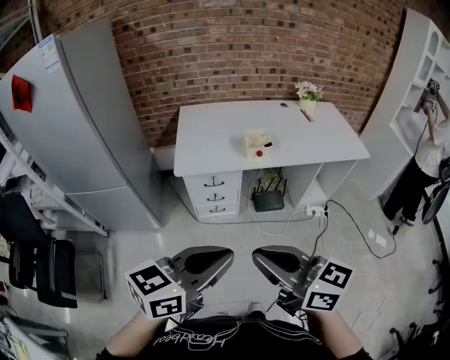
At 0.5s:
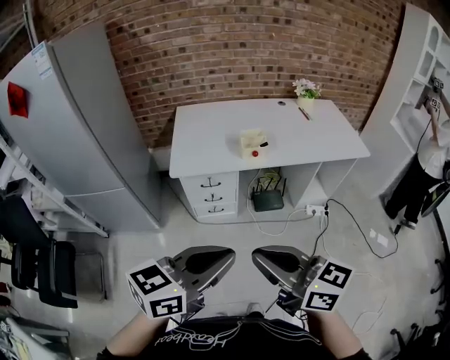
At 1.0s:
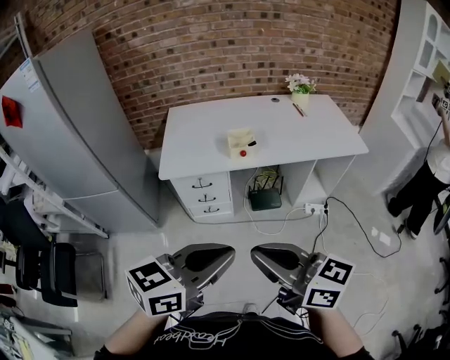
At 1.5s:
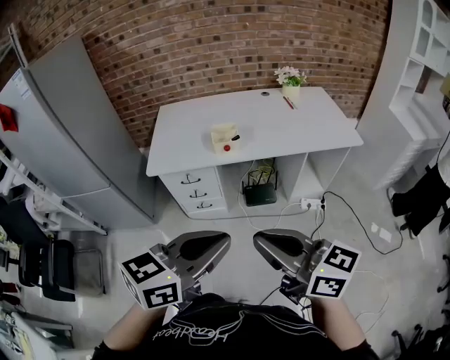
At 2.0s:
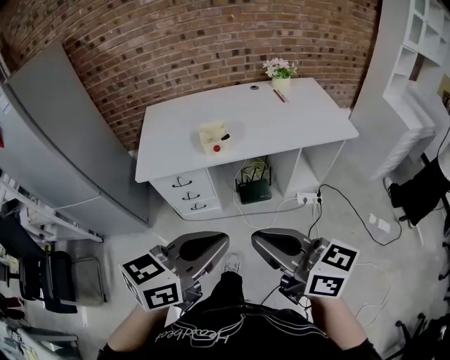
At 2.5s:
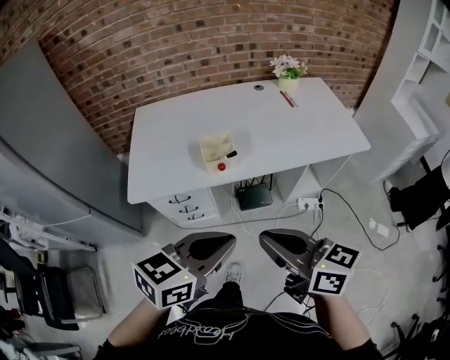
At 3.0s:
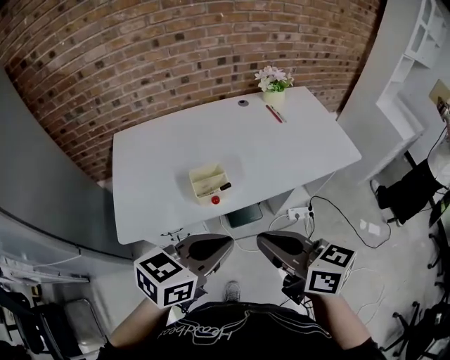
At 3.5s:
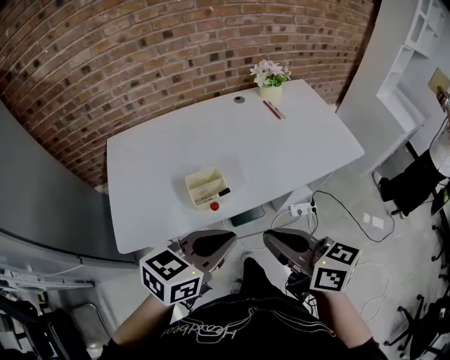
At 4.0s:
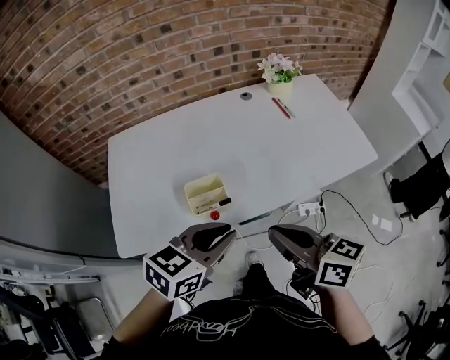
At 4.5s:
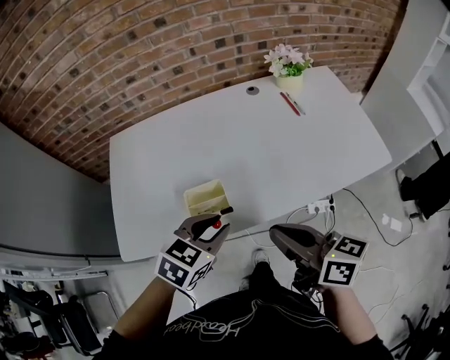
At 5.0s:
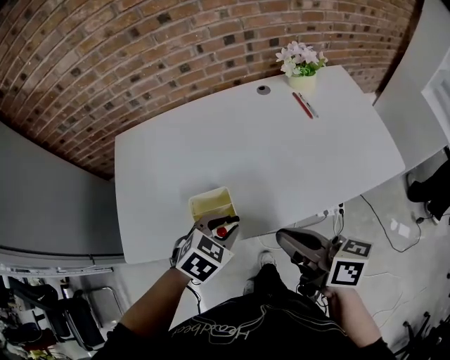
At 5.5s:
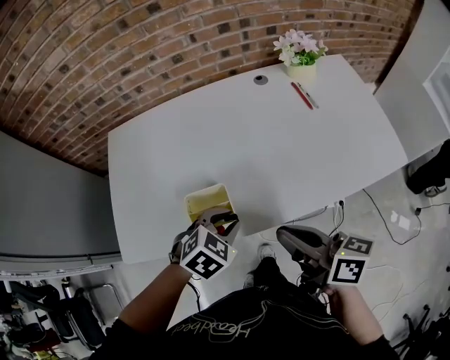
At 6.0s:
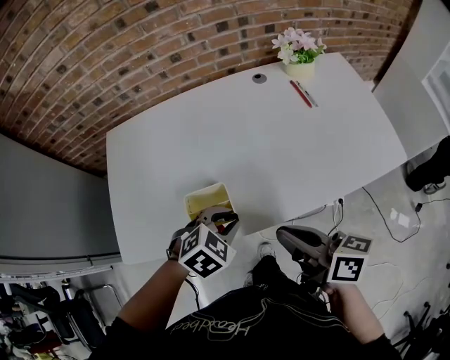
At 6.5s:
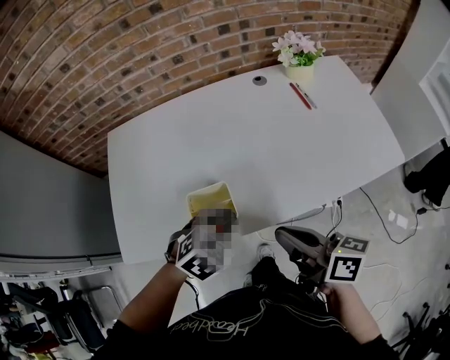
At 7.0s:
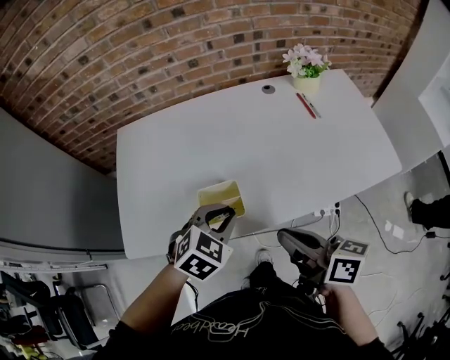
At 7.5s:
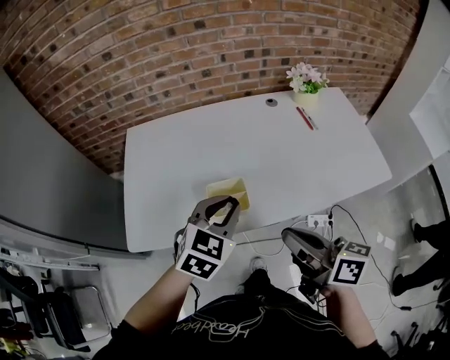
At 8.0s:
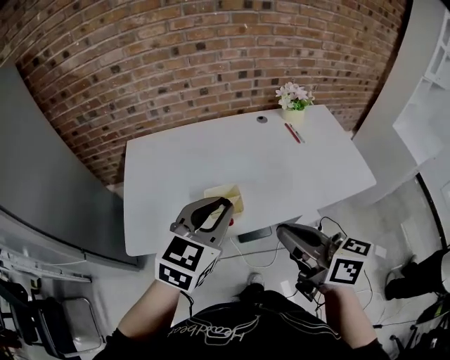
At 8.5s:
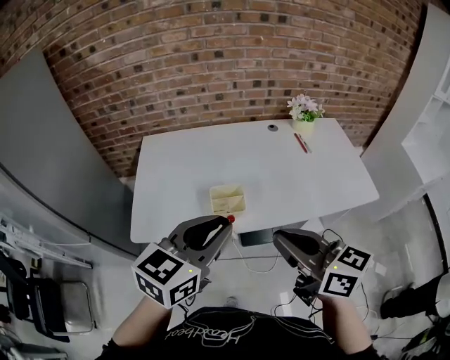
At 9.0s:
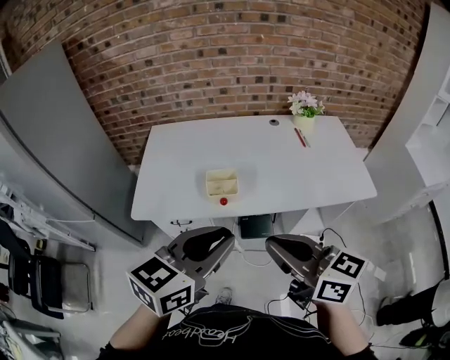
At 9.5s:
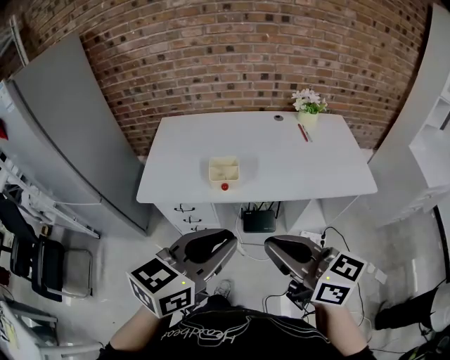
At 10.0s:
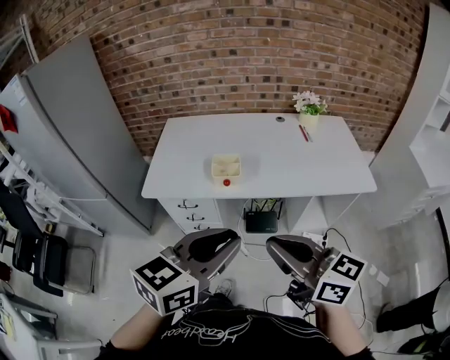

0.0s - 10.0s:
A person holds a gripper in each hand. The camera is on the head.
0.0s - 2.0s: Both grippers move to the right and forward, about 20 cm.
2.0s - 4.0s: Both grippers travel together forward, approximately 35 cm.
4.0s - 6.0s: The right gripper moves forward and downward, approximately 10 cm. The left gripper goes approximately 15 cm downward and forward, and angles its fingers downward, by roughly 30 degrees.
6.0s - 8.0s: The left gripper travels upward by approximately 20 cm, and points its fingers about 40 degrees further upward, while the right gripper goes roughly 15 cm upward and backward.
8.0s - 10.0s: The grippers both shift backward by some 25 cm. The right gripper changes its angle by roughly 20 degrees.

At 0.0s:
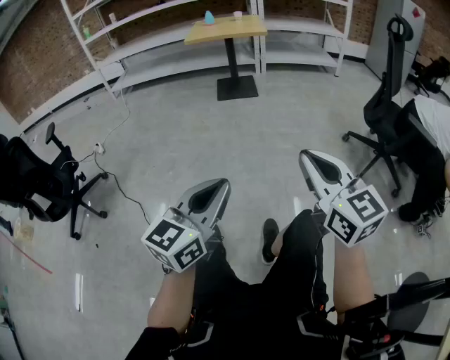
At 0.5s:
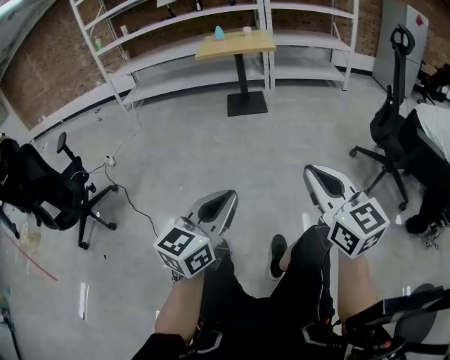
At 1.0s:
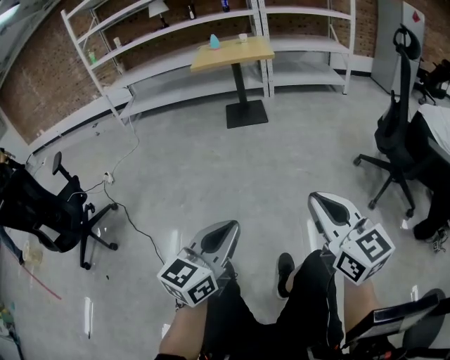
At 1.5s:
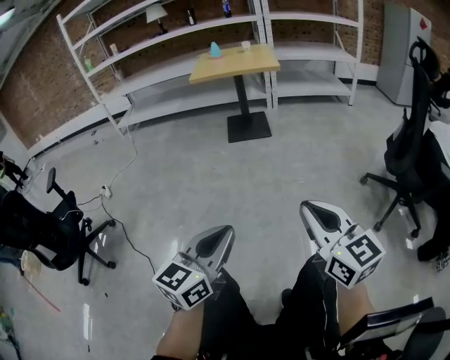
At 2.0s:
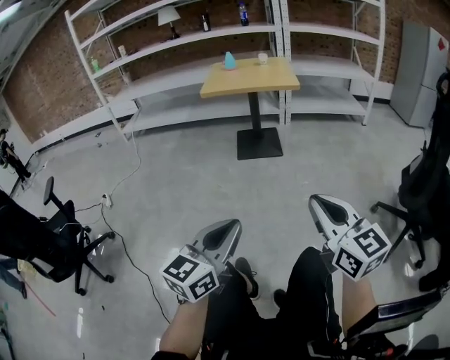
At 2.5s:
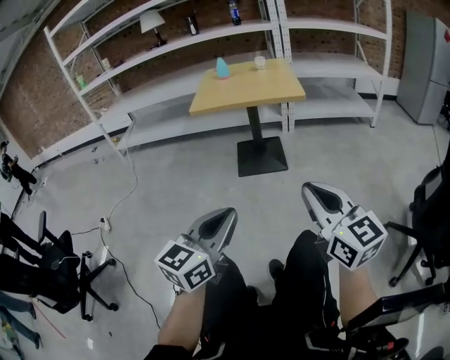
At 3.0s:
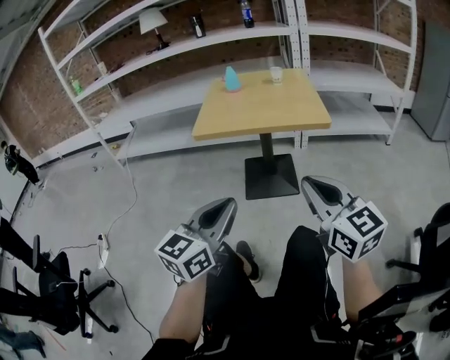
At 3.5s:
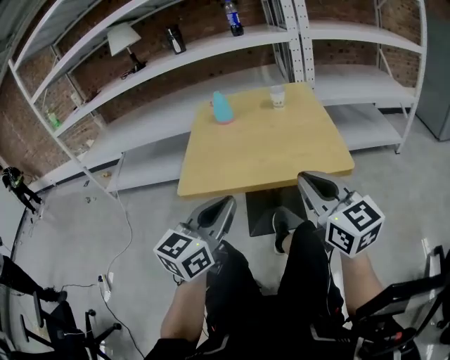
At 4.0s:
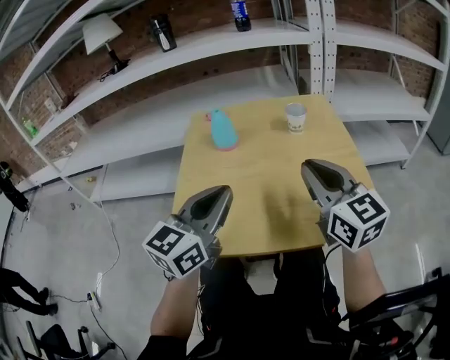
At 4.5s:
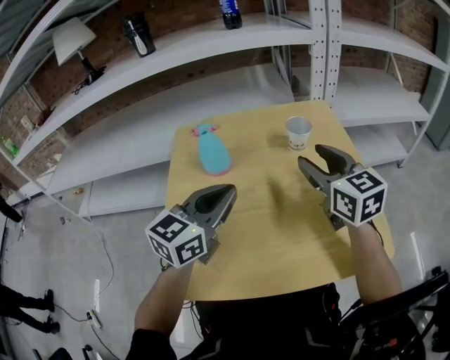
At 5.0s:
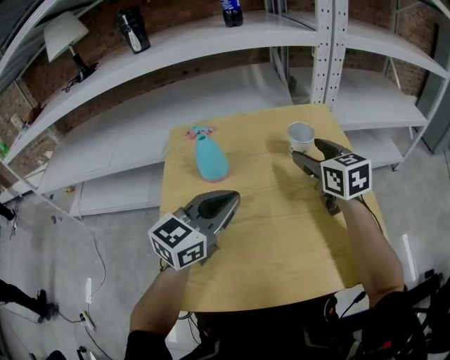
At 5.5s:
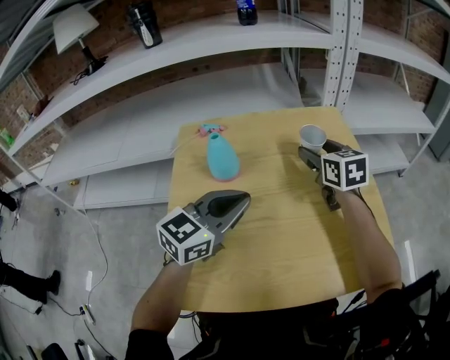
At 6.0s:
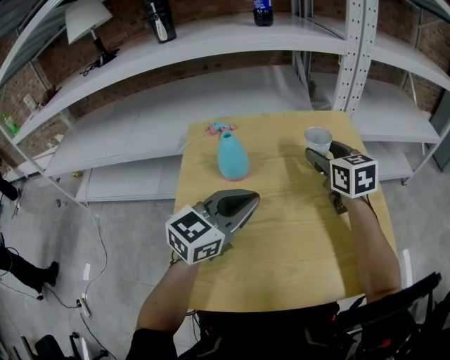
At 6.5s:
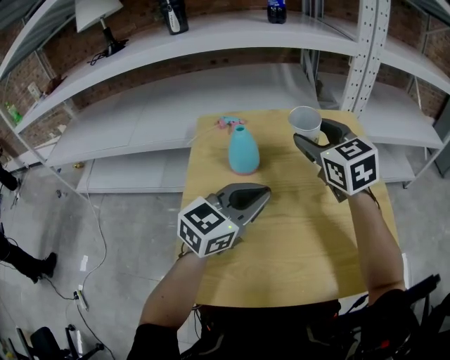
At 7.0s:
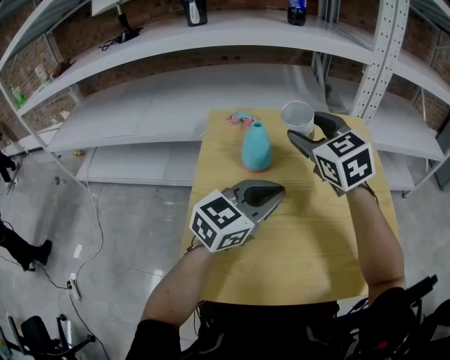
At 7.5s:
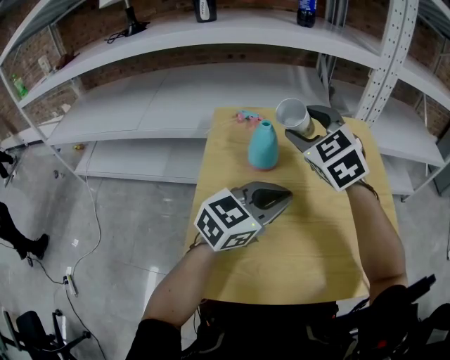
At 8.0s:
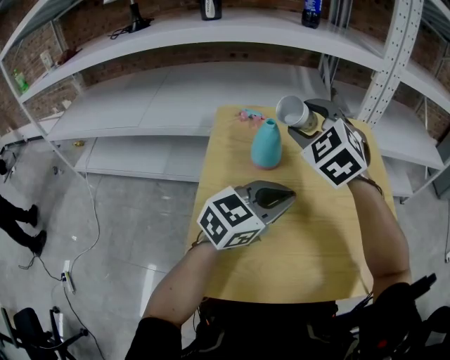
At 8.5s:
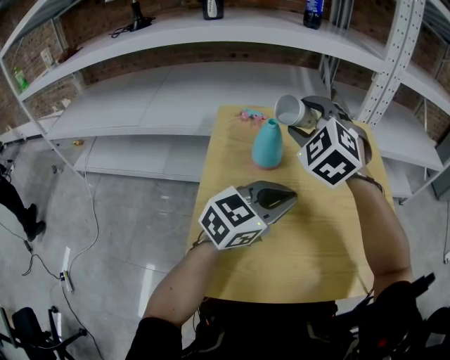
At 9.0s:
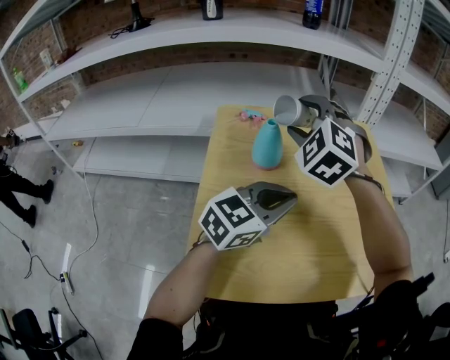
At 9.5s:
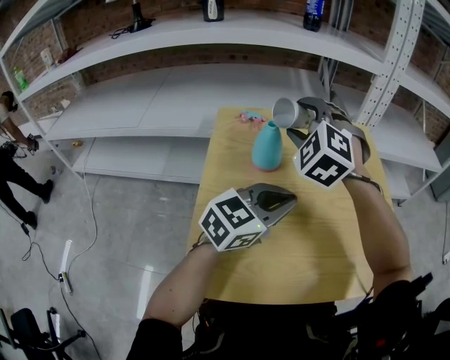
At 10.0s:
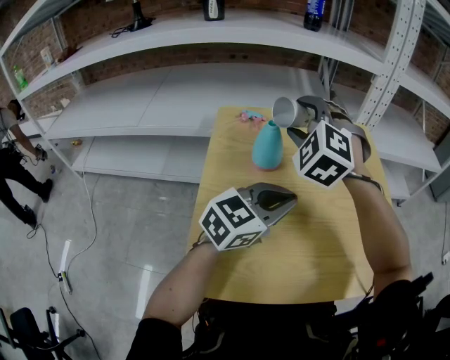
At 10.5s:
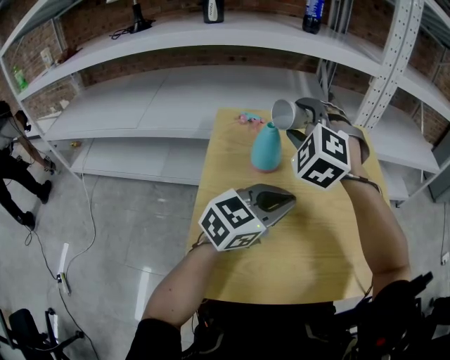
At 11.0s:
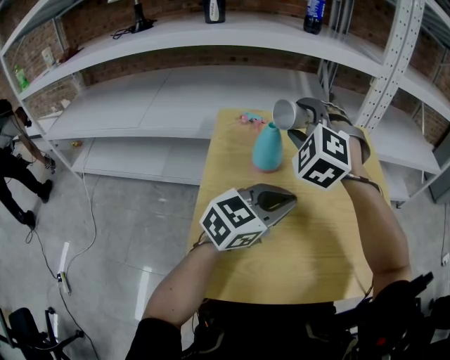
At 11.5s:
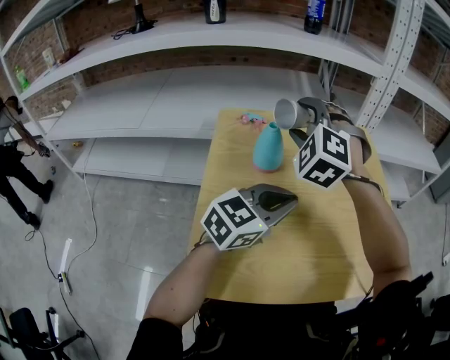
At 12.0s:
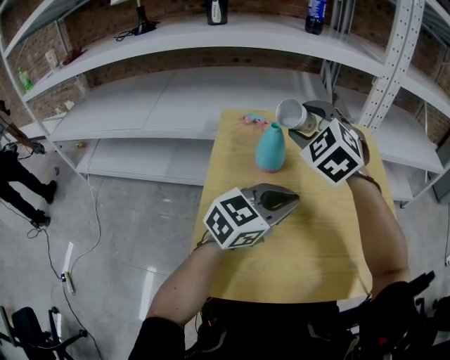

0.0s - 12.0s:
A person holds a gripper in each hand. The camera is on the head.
0.0s - 2.0s: Both grippers move forward, some 35 cm.
2.0s - 4.0s: The two grippers travel together, forward, about 90 cm.
4.0s - 6.0s: The right gripper is displaced forward by roughly 25 cm, rotates about 20 degrees, and opens. Meanwhile the left gripper moves forward, some 15 cm.
6.0s - 8.0s: The right gripper shifts roughly 20 cm to the left and upward, and rotates around the line of its fingers by approximately 50 degrees, counterclockwise from behind.
8.0s - 10.0s: The grippers move only a little.
10.0s - 12.0s: The grippers stay close to where they were, moving slightly.

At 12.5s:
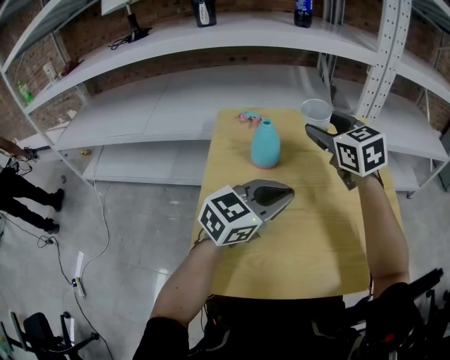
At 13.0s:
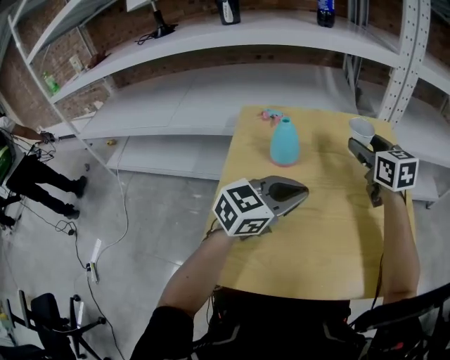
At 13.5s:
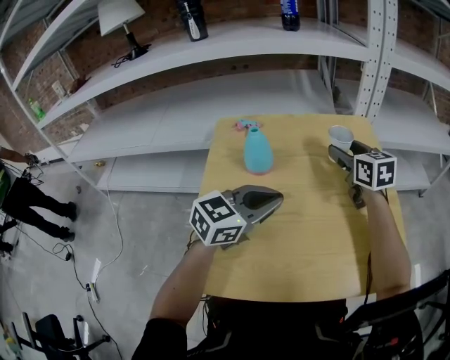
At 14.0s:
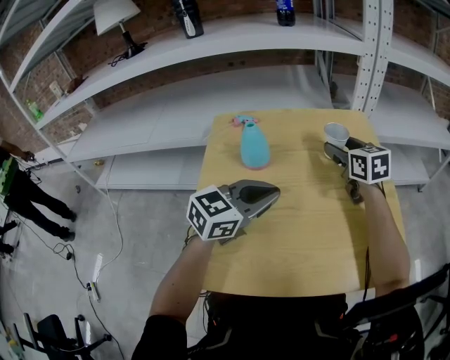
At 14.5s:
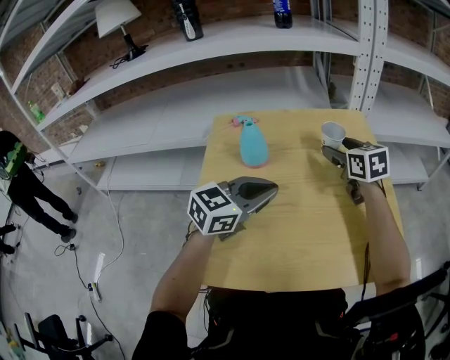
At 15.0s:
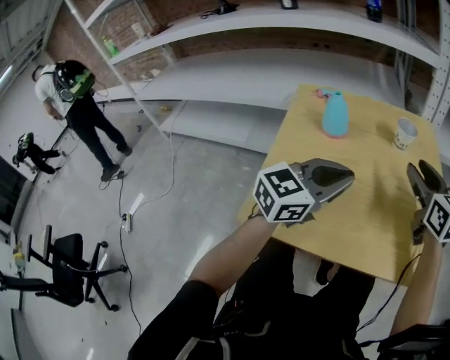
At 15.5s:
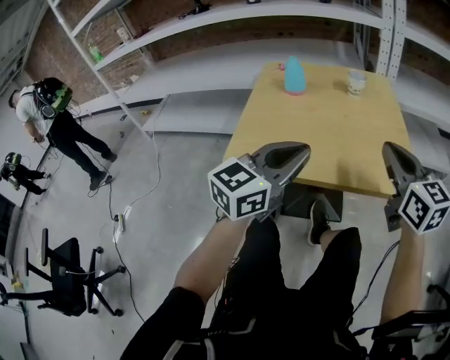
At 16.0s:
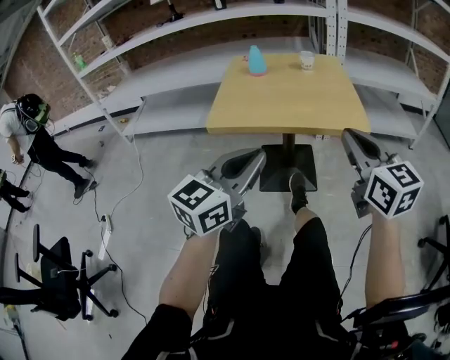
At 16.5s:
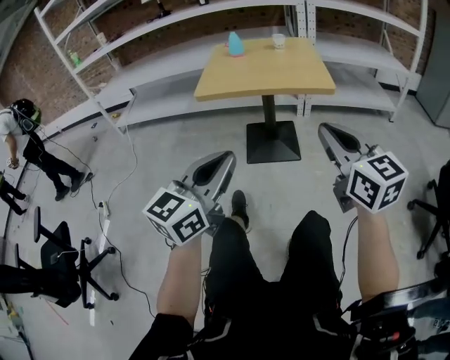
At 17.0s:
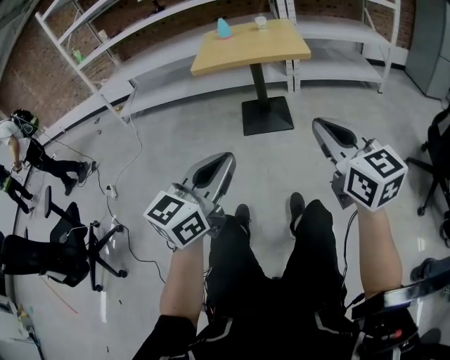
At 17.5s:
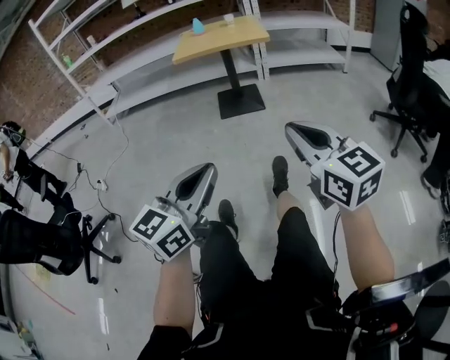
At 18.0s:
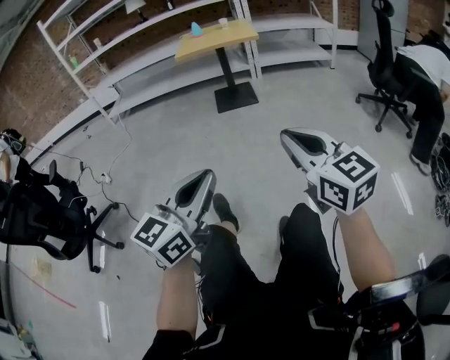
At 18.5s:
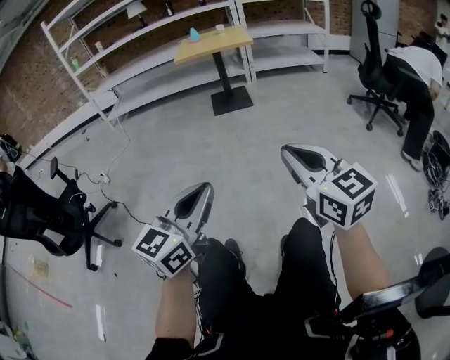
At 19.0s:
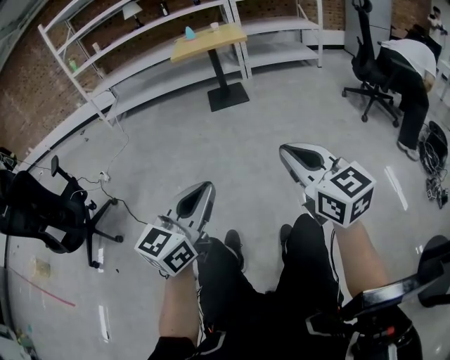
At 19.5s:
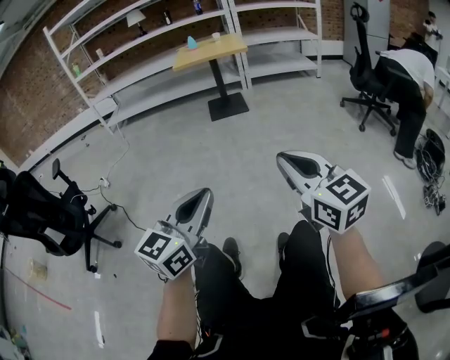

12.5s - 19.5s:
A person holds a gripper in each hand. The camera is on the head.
12.5s - 14.5s: The right gripper is displaced to the right and downward by approximately 15 cm.
14.5s - 16.0s: The two grippers travel together, backward, approximately 50 cm. The left gripper changes its angle by roughly 30 degrees. Meanwhile the right gripper swivels approximately 20 degrees, and closes up.
16.0s - 17.5s: The pair of grippers is taken backward, approximately 70 cm.
17.5s - 19.5s: Both grippers move backward, approximately 35 cm.
